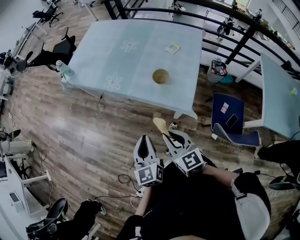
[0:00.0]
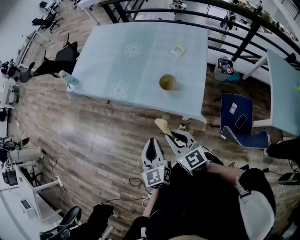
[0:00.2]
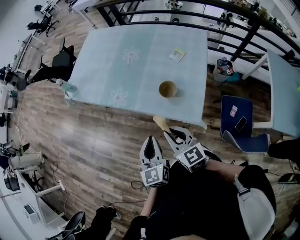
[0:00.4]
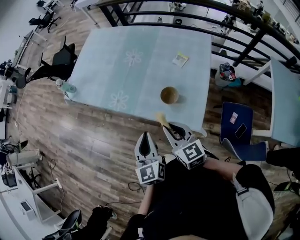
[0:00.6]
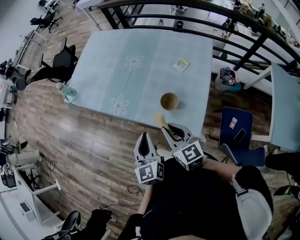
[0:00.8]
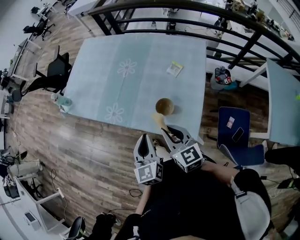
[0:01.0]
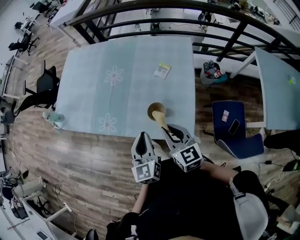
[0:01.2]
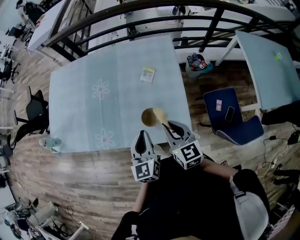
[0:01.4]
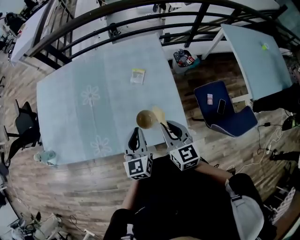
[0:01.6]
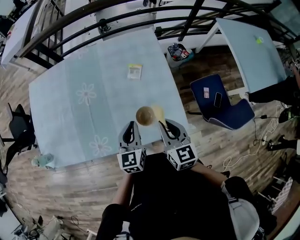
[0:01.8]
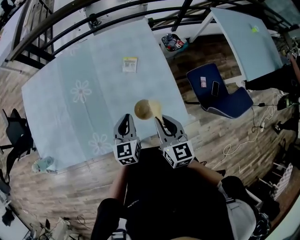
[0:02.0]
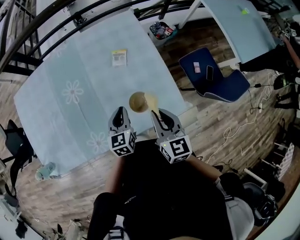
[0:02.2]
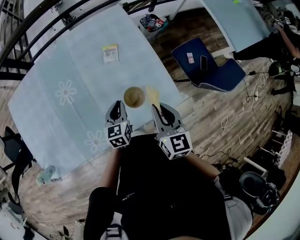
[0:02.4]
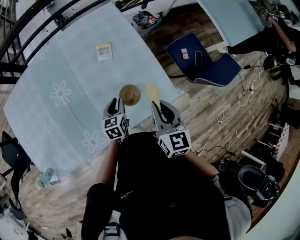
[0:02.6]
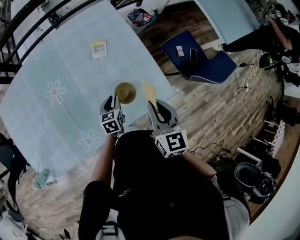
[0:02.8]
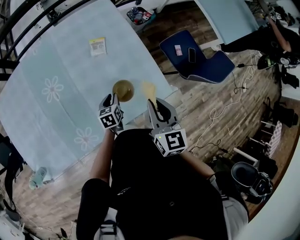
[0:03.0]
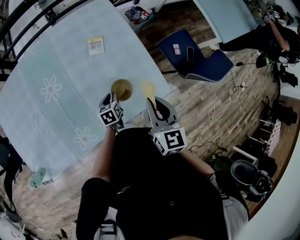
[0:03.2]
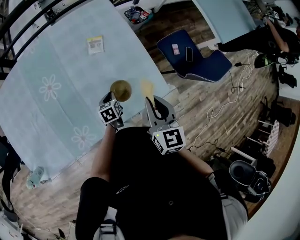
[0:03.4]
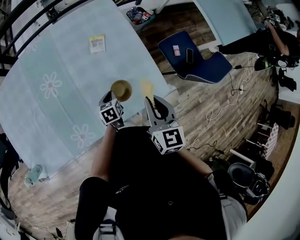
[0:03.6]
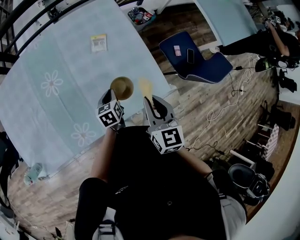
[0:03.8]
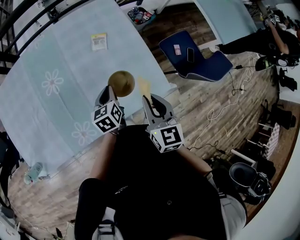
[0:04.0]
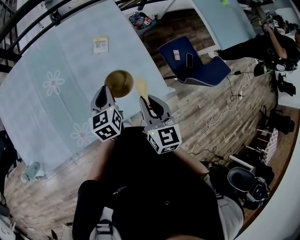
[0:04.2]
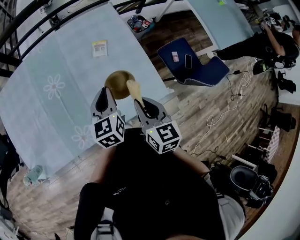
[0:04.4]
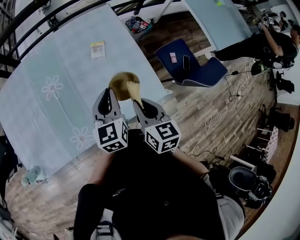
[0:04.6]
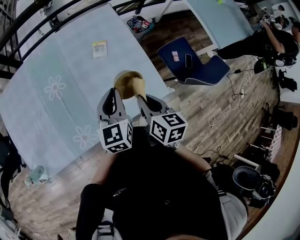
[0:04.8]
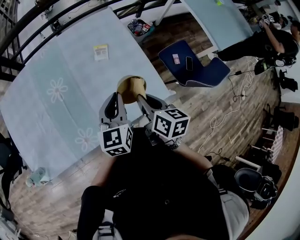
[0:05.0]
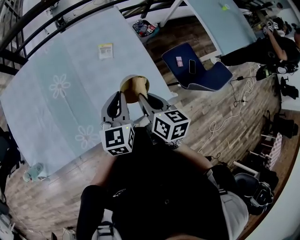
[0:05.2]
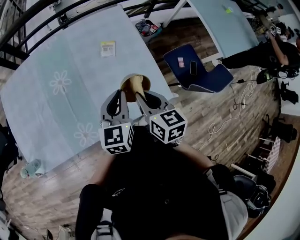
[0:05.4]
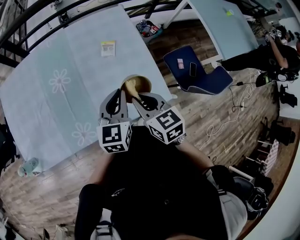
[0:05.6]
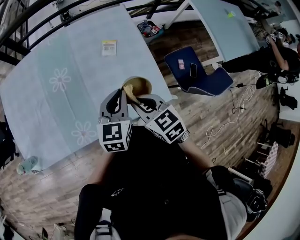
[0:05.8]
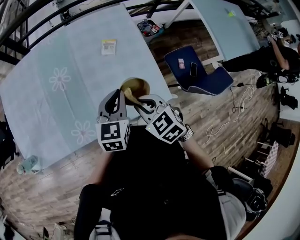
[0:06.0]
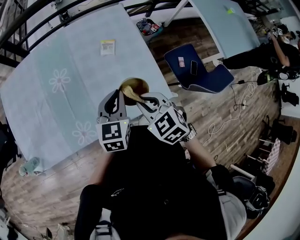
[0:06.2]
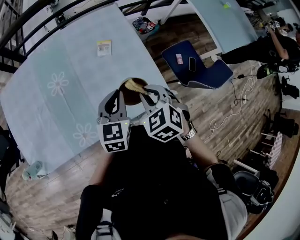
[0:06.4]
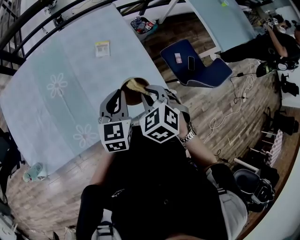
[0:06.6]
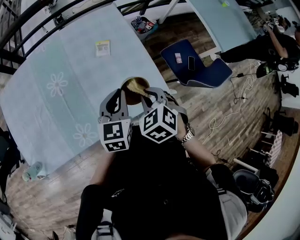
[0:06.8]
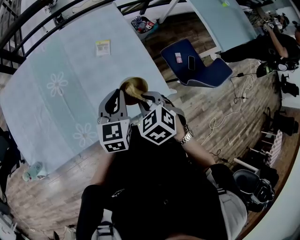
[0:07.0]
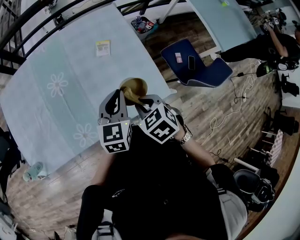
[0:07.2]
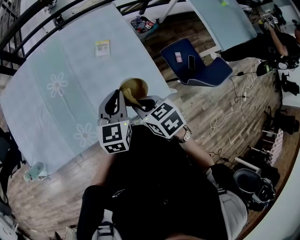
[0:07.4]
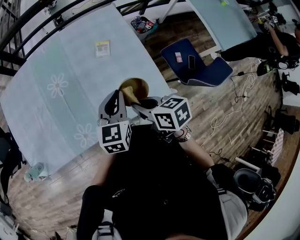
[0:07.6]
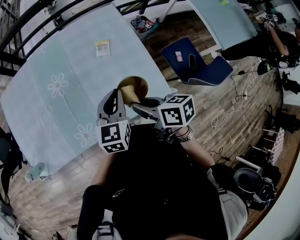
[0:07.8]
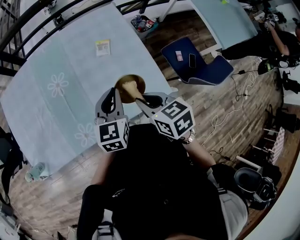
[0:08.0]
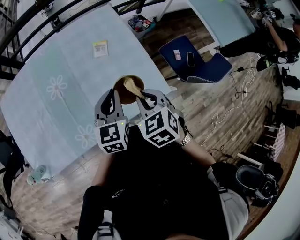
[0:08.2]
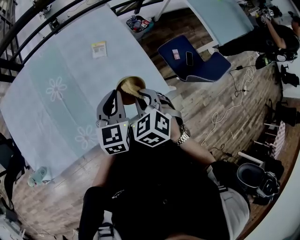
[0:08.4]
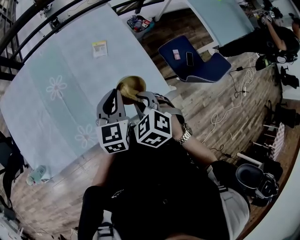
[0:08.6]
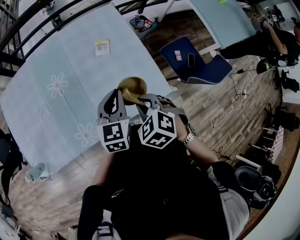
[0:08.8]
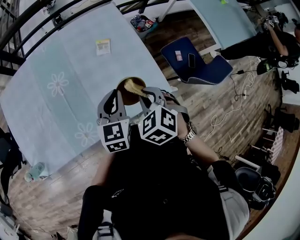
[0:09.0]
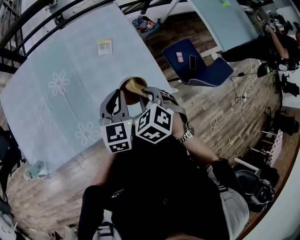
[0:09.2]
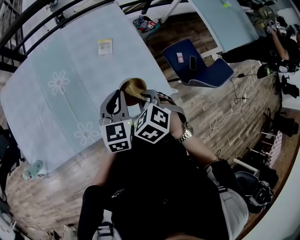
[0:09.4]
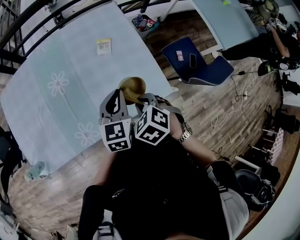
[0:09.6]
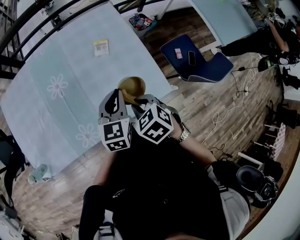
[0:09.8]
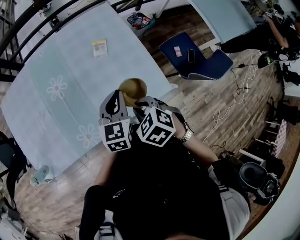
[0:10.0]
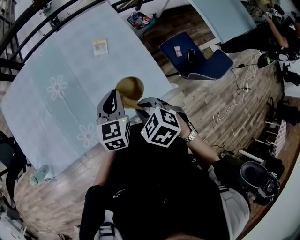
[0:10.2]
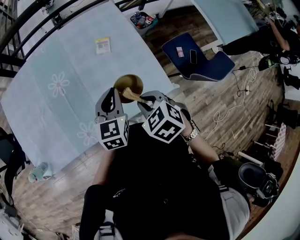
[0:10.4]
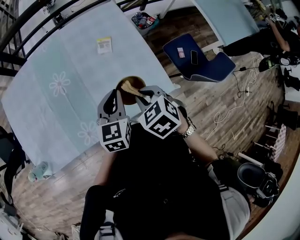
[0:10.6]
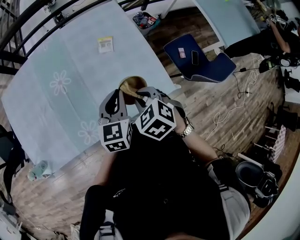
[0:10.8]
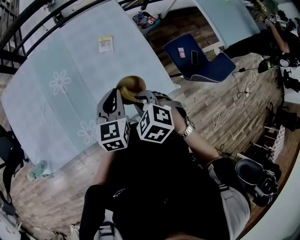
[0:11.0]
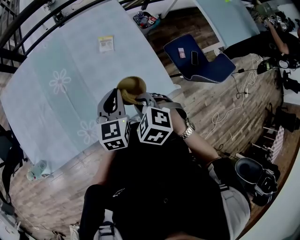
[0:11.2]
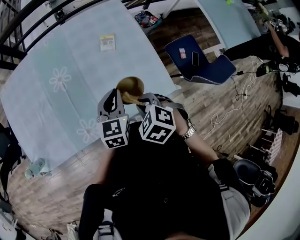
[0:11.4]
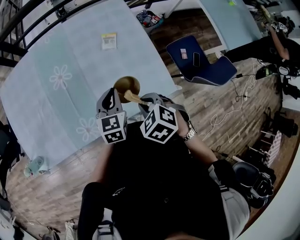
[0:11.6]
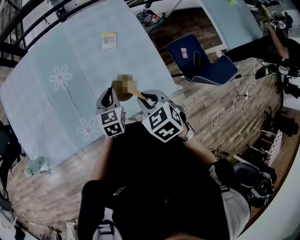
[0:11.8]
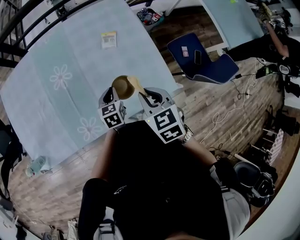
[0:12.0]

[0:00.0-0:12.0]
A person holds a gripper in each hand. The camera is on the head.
0:00.0 to 0:01.6: The right gripper moves some 30 cm, and turns by about 40 degrees, while the left gripper changes place by some 35 cm, and turns by approximately 40 degrees.
0:01.6 to 0:03.0: The right gripper turns by some 30 degrees. The left gripper travels downward by approximately 25 cm, and tips its fingers downward by roughly 30 degrees.
0:03.0 to 0:04.4: The left gripper is displaced upward by approximately 25 cm, and turns by approximately 30 degrees.
0:04.4 to 0:06.0: The right gripper swivels some 50 degrees.
0:06.0 to 0:07.6: The right gripper twists roughly 40 degrees clockwise, seen from behind.
0:07.6 to 0:09.0: The right gripper swivels roughly 60 degrees.
0:10.4 to 0:12.0: The right gripper swivels some 20 degrees. Meanwhile the left gripper heads downward, covering roughly 15 cm.

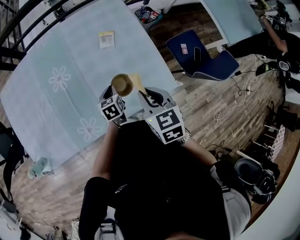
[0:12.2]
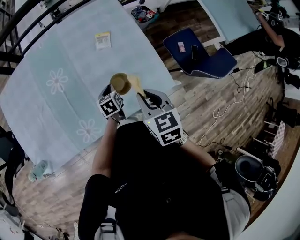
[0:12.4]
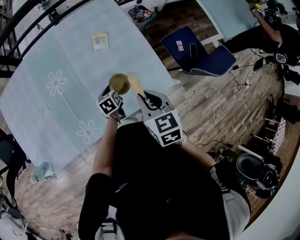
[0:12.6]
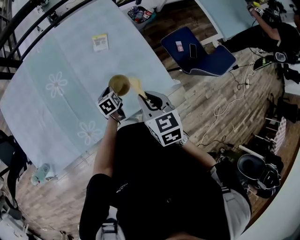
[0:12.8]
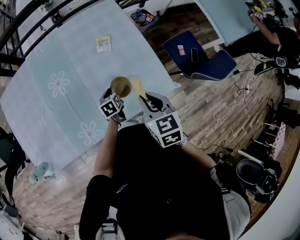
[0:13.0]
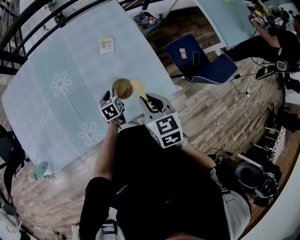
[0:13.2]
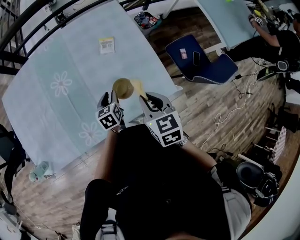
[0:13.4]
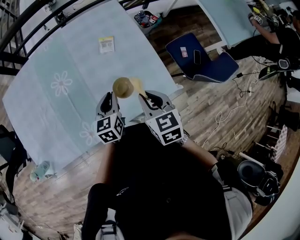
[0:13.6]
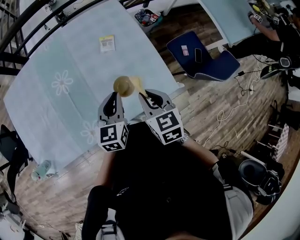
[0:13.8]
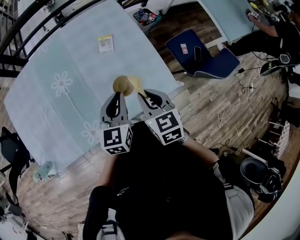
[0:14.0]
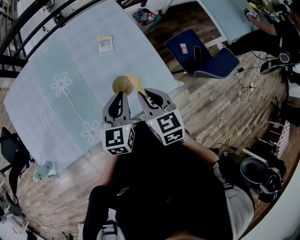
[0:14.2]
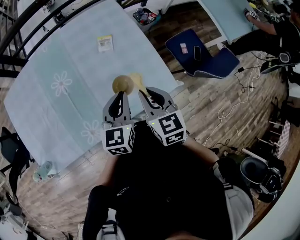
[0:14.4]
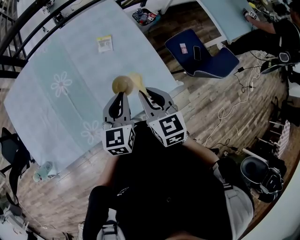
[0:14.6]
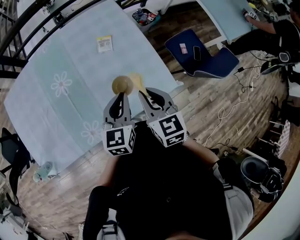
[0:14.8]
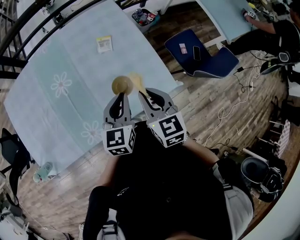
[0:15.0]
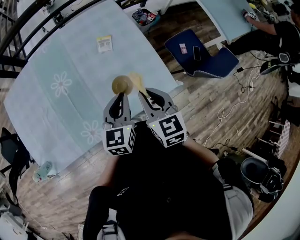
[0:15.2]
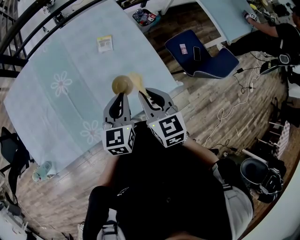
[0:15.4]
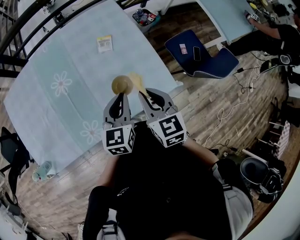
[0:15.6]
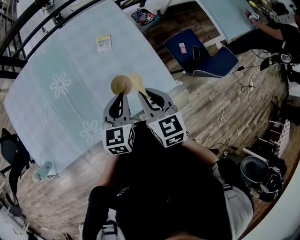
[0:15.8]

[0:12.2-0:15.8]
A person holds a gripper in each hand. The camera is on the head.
0:12.2 to 0:14.0: The left gripper shifts roughly 20 cm upward, swivels approximately 30 degrees, and opens, then closes once more.
0:14.0 to 0:15.8: The grippers make only small movements.

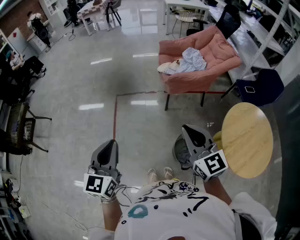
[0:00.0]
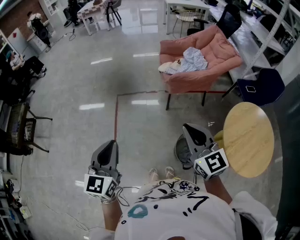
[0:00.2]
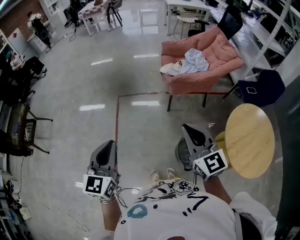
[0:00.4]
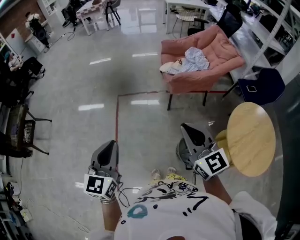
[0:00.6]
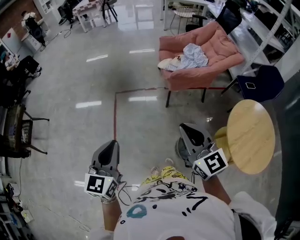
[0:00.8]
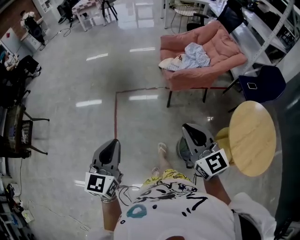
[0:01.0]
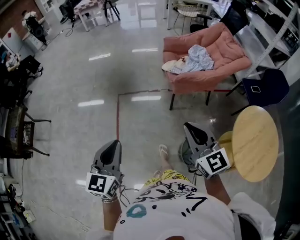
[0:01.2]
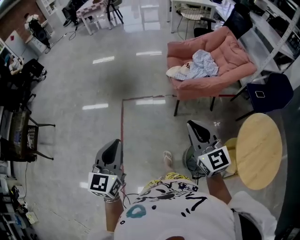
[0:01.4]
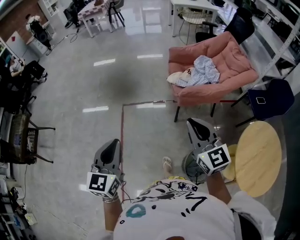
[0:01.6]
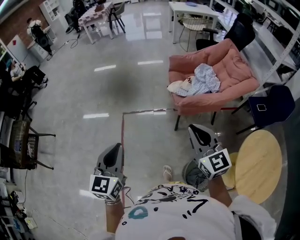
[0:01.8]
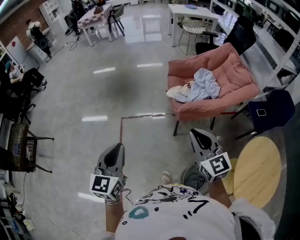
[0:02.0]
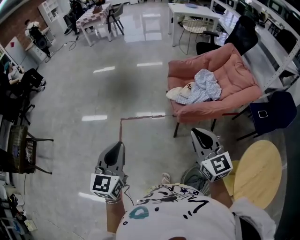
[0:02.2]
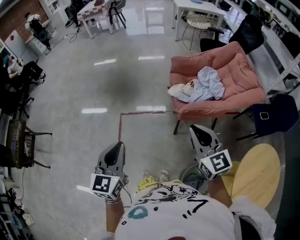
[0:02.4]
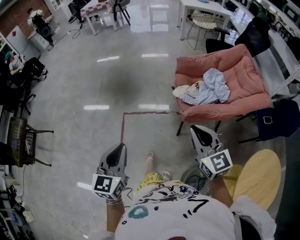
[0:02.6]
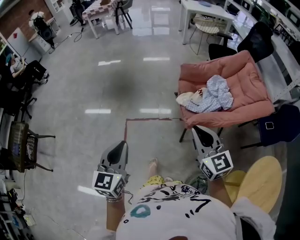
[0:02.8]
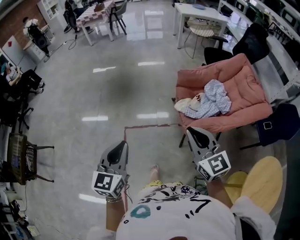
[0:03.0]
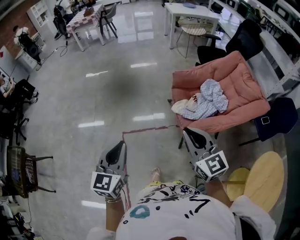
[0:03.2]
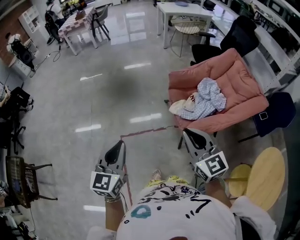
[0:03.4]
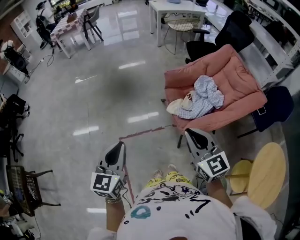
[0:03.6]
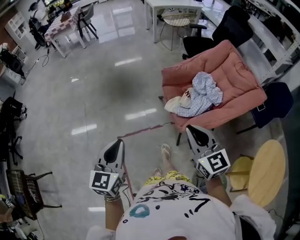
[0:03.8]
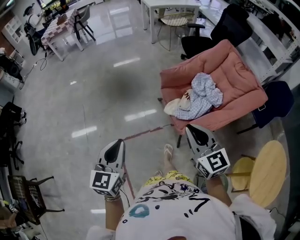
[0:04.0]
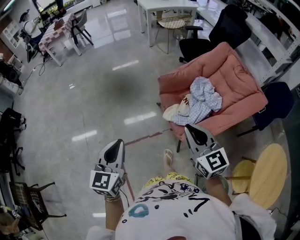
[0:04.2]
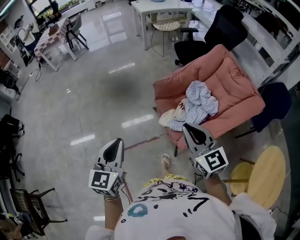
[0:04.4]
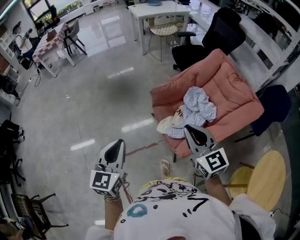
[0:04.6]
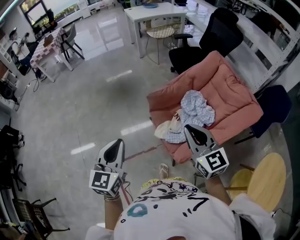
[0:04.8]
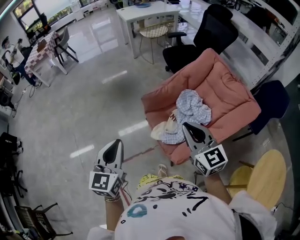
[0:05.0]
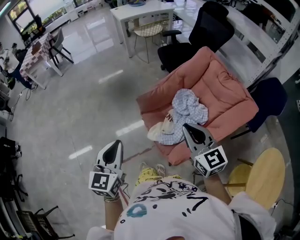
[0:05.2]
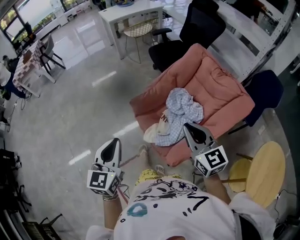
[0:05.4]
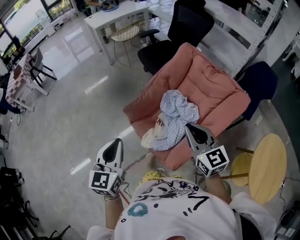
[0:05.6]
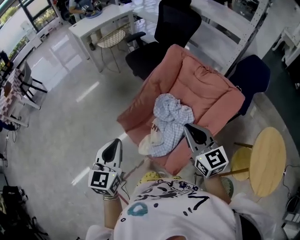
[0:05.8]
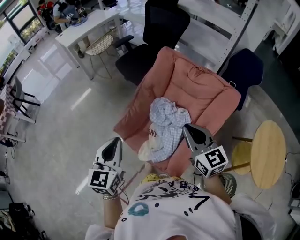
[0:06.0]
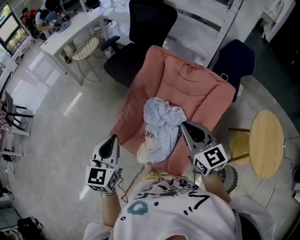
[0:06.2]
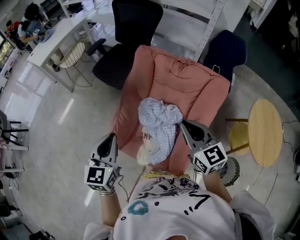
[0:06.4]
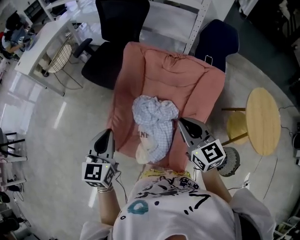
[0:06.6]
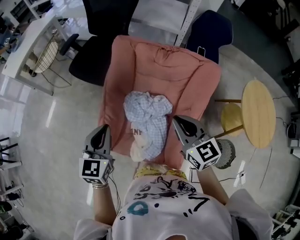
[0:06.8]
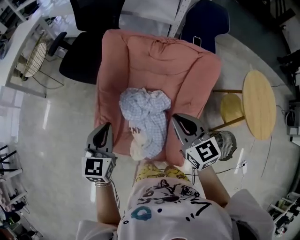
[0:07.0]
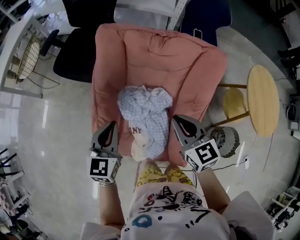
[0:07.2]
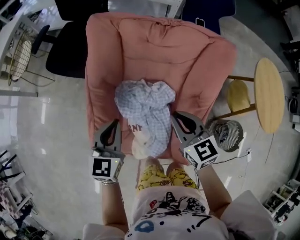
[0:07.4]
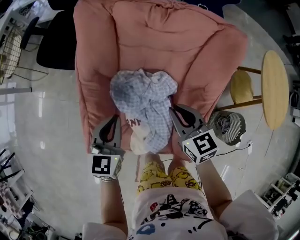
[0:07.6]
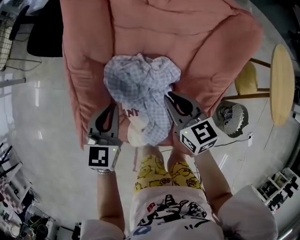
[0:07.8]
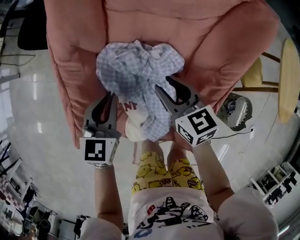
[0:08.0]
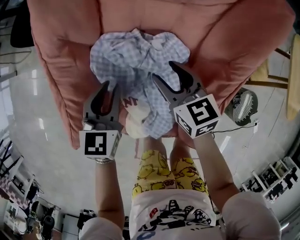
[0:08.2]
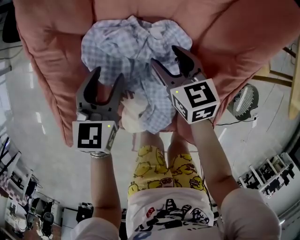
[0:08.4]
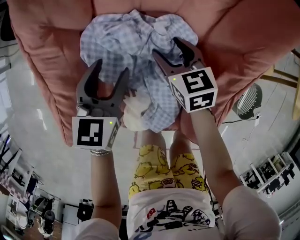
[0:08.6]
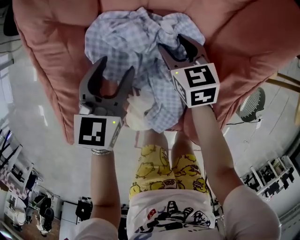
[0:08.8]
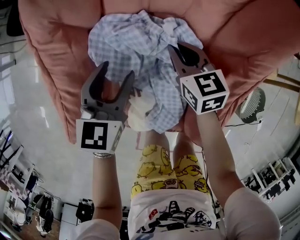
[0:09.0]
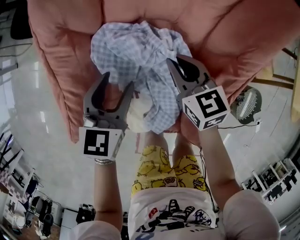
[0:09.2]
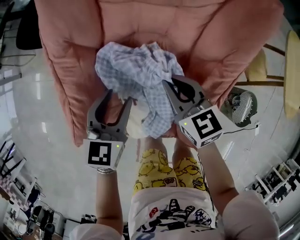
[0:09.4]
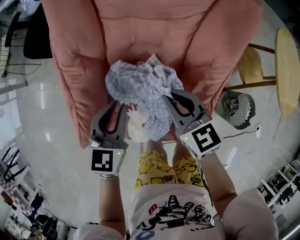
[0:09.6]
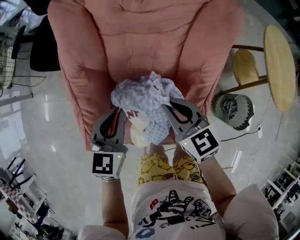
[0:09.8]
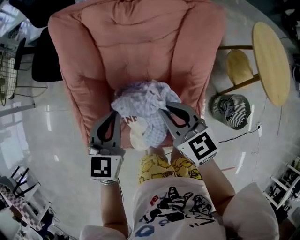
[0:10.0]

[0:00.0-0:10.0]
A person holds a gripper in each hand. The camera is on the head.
0:00.0 to 0:01.4: The two grippers go some 15 cm forward.
0:01.4 to 0:02.8: The two grippers go about 30 cm forward.
0:02.8 to 0:04.2: The two grippers go roughly 25 cm forward.
0:04.2 to 0:05.8: The left gripper ends up approximately 40 cm from where it was, and swivels approximately 20 degrees; the right gripper ends up approximately 30 cm from where it was, and turns by approximately 30 degrees.
0:05.8 to 0:07.2: The right gripper moves about 20 cm, and changes its angle by about 30 degrees. Meanwhile the left gripper changes place by about 35 cm, and swivels some 40 degrees.
0:07.2 to 0:08.6: Both grippers move downward, about 30 cm. The left gripper opens up, while the right gripper opens.
0:08.6 to 0:10.0: The two grippers go some 25 cm upward. The left gripper closes up. The right gripper closes up.
